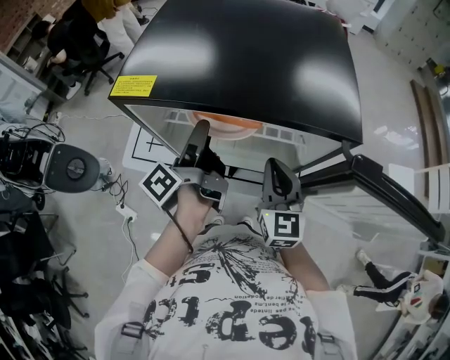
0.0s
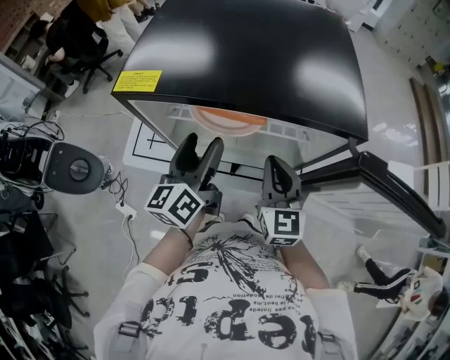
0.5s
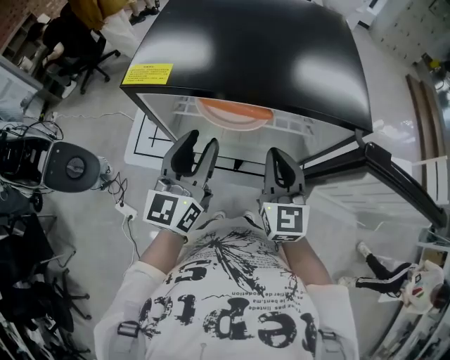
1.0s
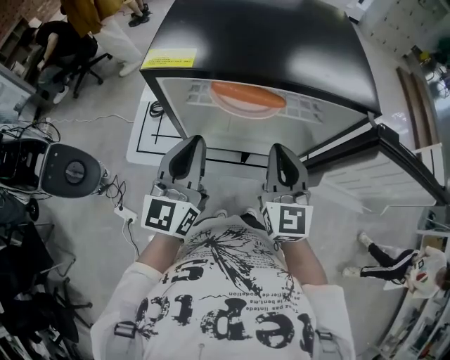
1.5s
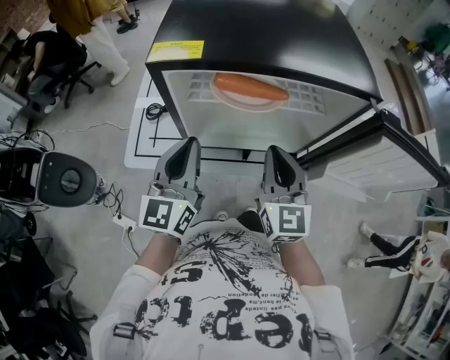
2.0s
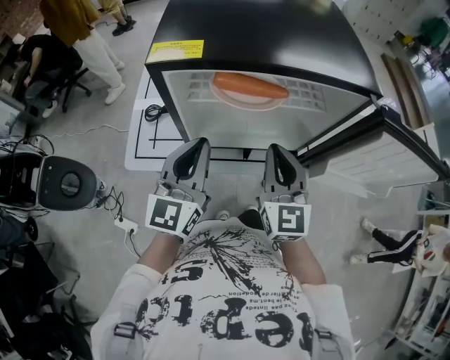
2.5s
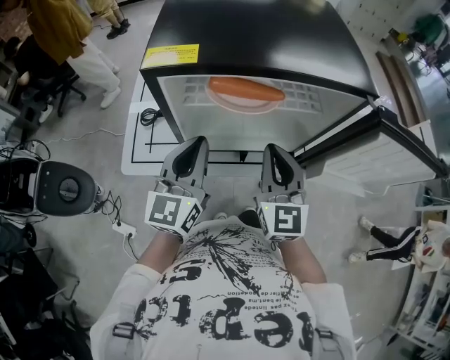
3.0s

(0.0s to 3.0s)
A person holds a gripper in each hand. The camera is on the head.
0.0s - 1.5s: The right gripper changes place by approximately 10 cm.

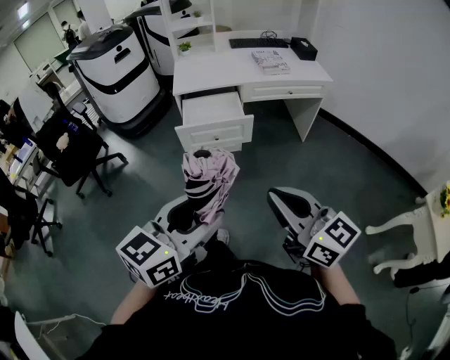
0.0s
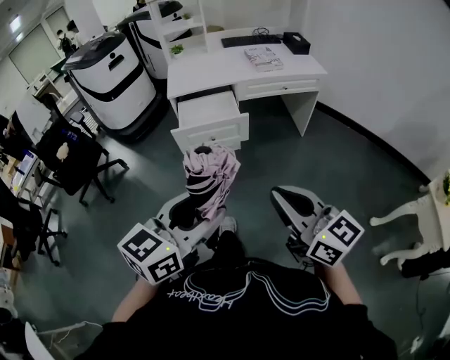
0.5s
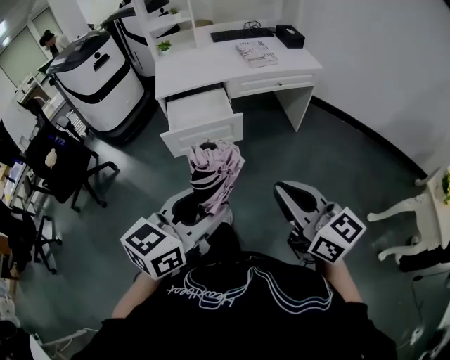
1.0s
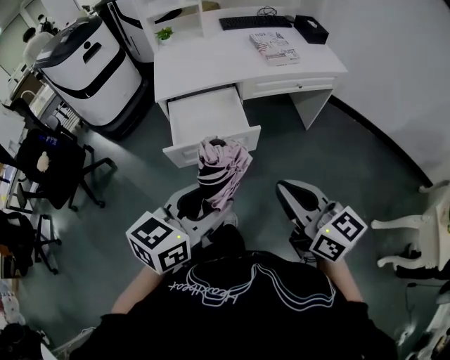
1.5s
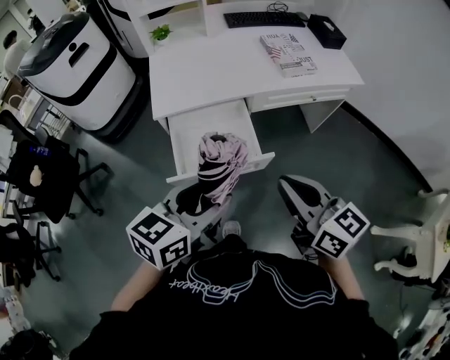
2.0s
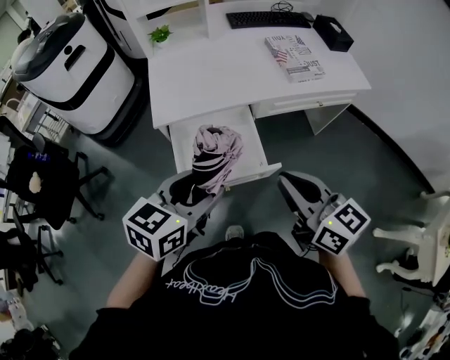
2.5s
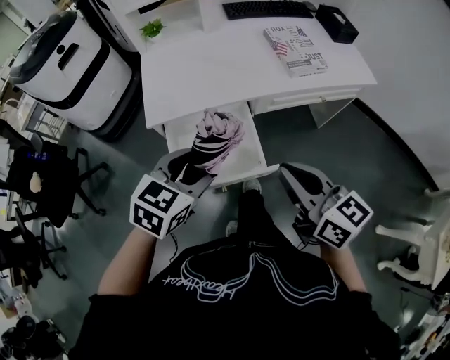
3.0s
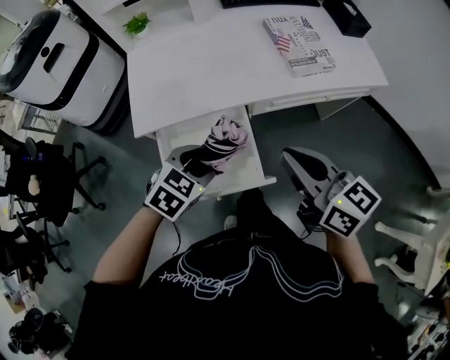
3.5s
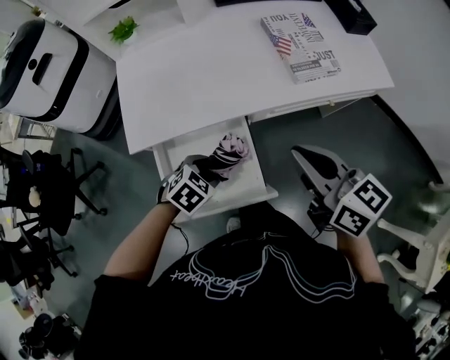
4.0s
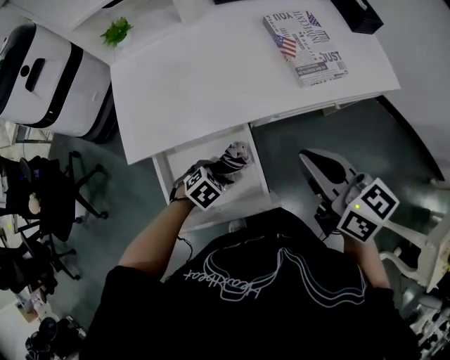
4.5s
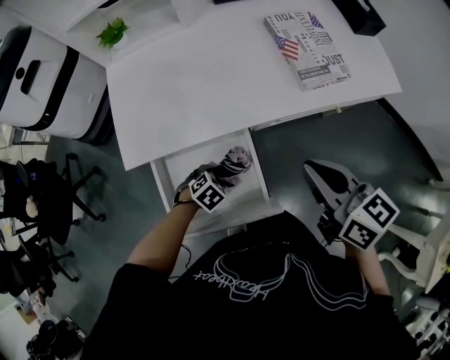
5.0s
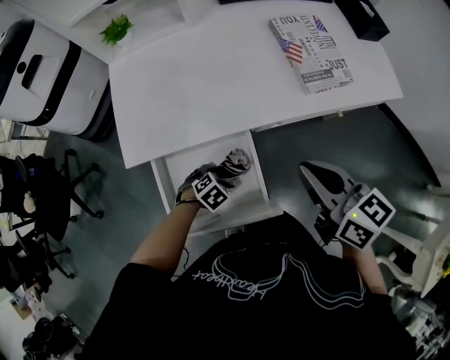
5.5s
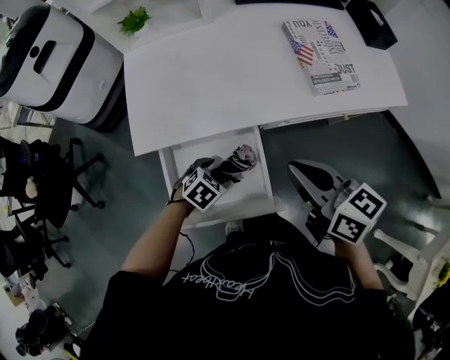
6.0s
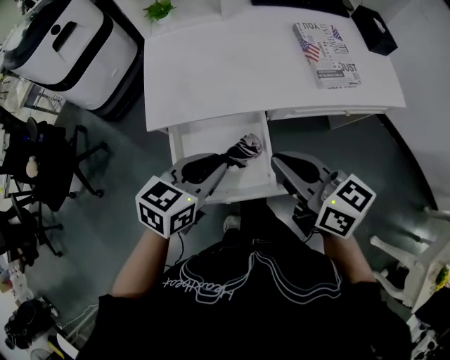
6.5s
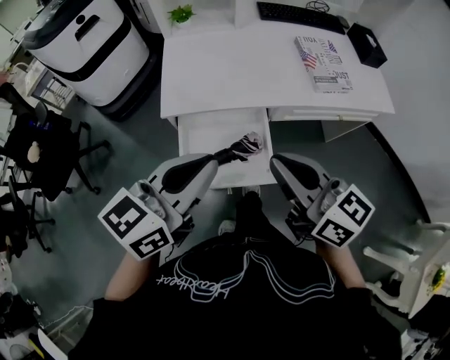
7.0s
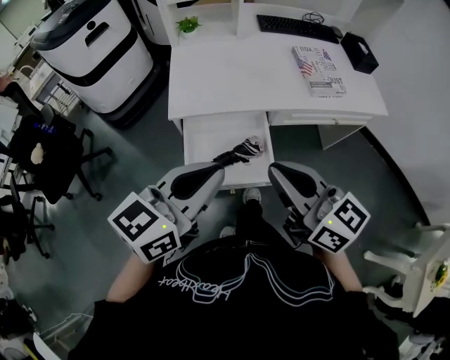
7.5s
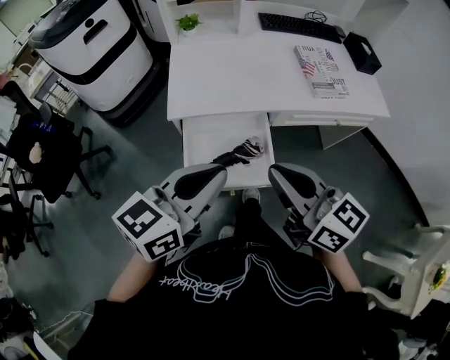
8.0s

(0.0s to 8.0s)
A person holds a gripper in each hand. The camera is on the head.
0.0s - 2.0s: The grippers both shift forward by some 40 cm.
2.0s - 4.0s: The left gripper shifts approximately 35 cm downward and forward, and tips its fingers downward by some 40 degrees, while the right gripper is displaced forward by about 25 cm.
4.0s - 6.0s: The left gripper is displaced downward by roughly 10 cm, while the right gripper ends up about 5 cm from where it was.
6.0s - 8.0s: The left gripper travels upward by about 35 cm, tilts its fingers approximately 60 degrees upward, and closes. The right gripper goes roughly 20 cm backward, upward and to the left.

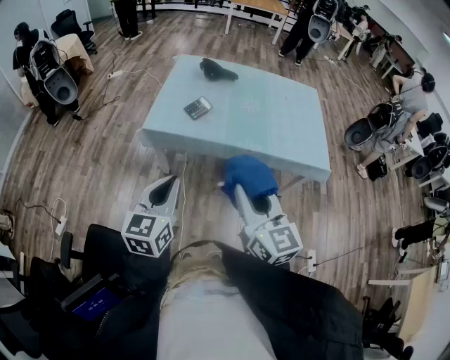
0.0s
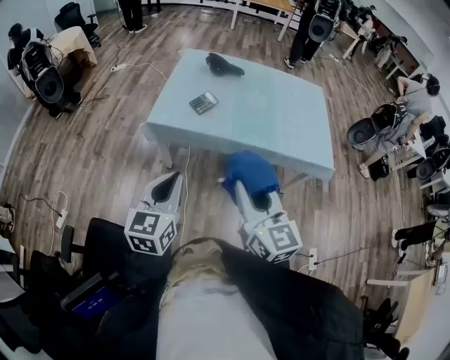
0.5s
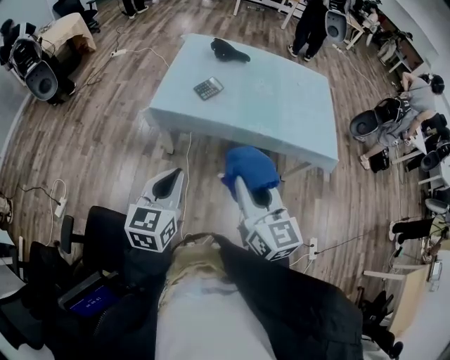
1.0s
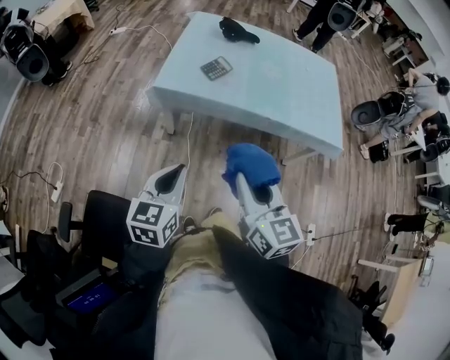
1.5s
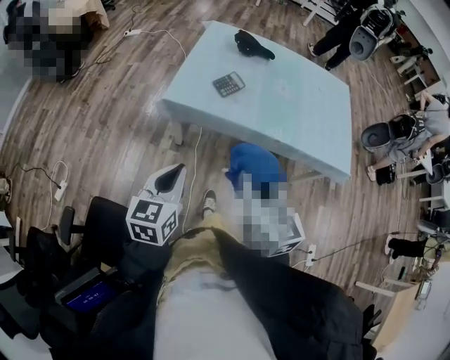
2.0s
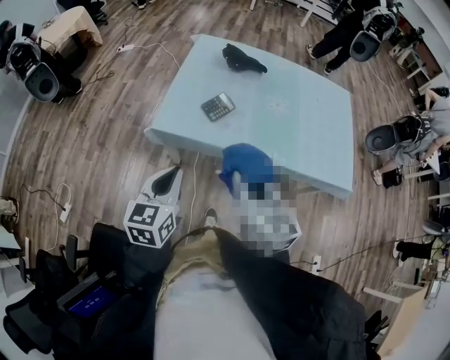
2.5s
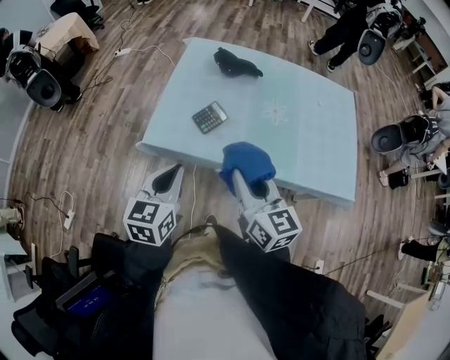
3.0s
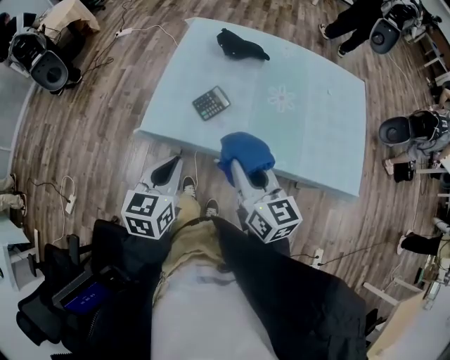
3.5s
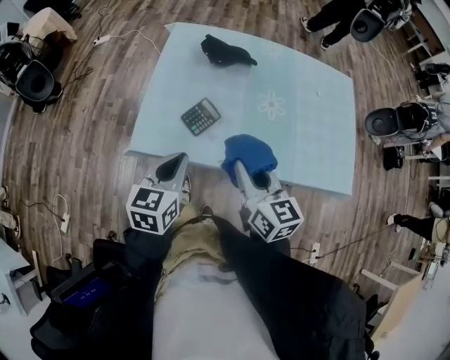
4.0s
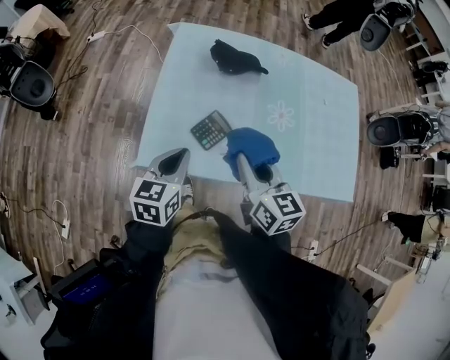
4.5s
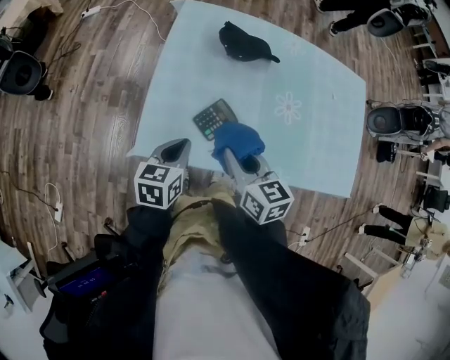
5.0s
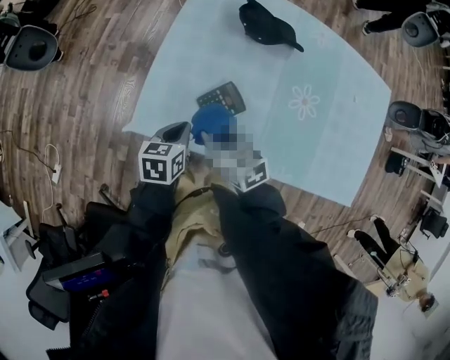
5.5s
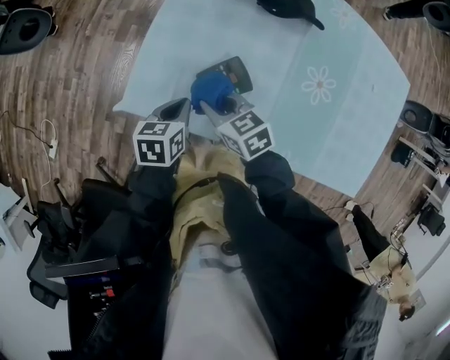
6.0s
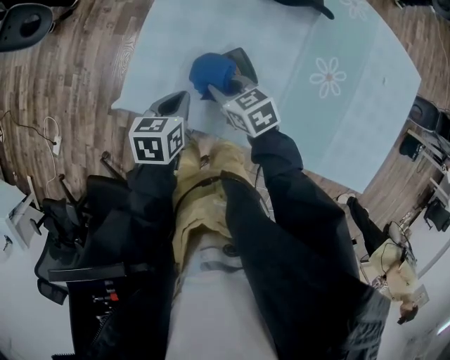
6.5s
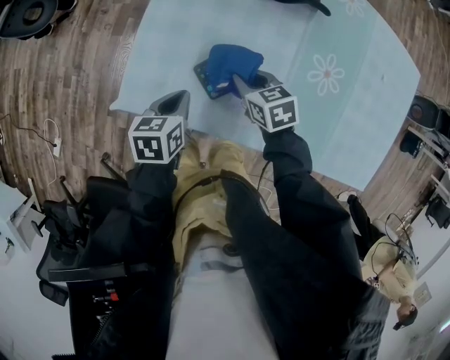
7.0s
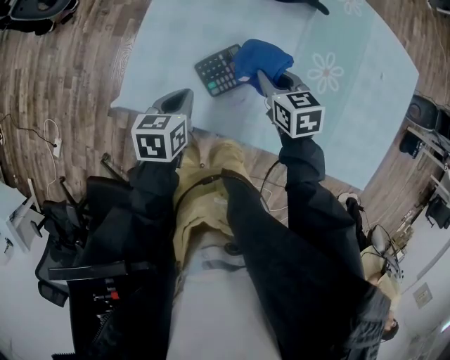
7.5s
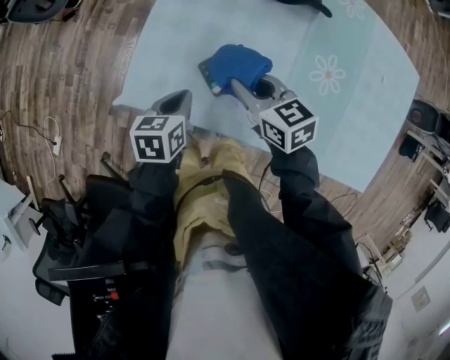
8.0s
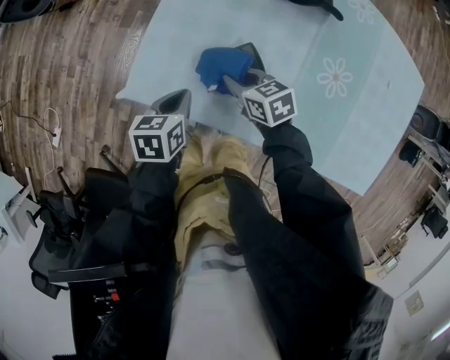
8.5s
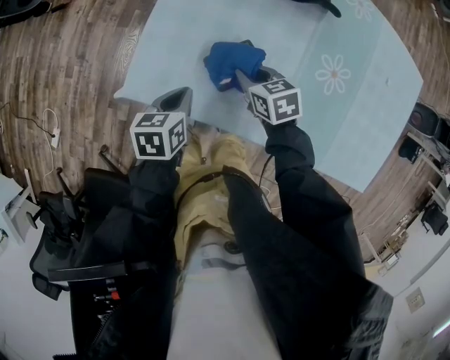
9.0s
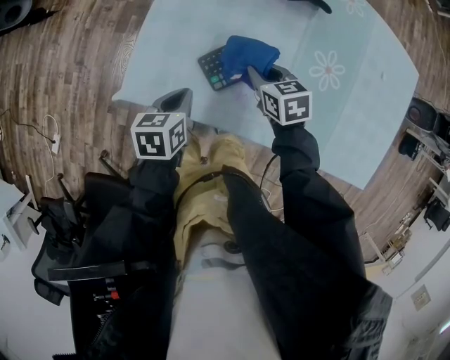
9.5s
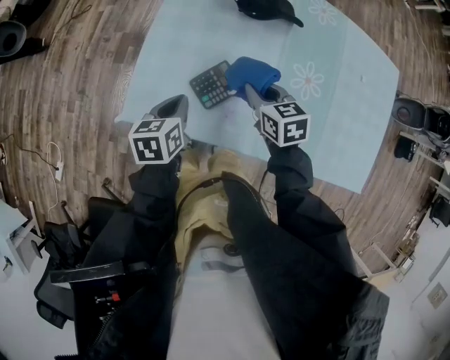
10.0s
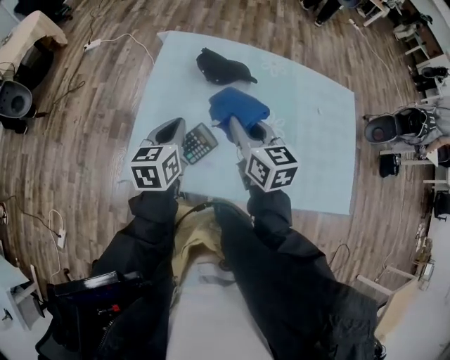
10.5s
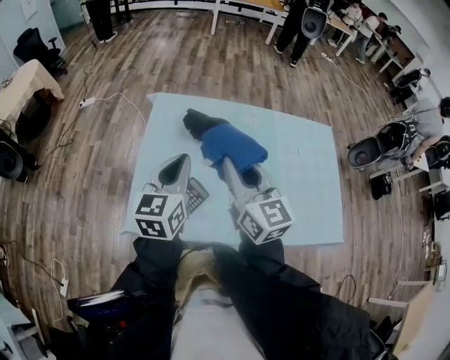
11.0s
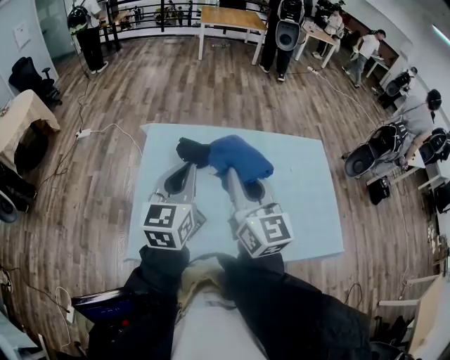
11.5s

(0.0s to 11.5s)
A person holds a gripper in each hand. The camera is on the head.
0.0s - 2.0s: The right gripper travels to the left, forward and downward by some 10 cm. The left gripper travels to the left and downward by roughly 10 cm.
2.0s - 4.0s: The grippers both shift forward by about 30 cm.
4.0s - 6.0s: The grippers both shift downward by some 20 cm. The left gripper changes its angle by approximately 30 degrees, while the right gripper turns by approximately 50 degrees.
6.0s - 7.5s: The right gripper moves to the right, about 15 cm.
7.5s - 9.5s: The right gripper reaches about 10 cm to the left, then returns.
9.5s - 11.5s: Both grippers travel together upward, approximately 40 cm. The right gripper points its fingers approximately 60 degrees further upward, while the left gripper angles its fingers upward, by about 50 degrees.

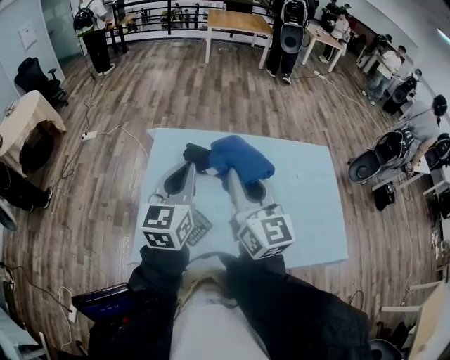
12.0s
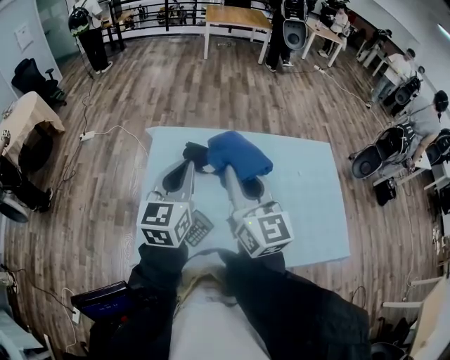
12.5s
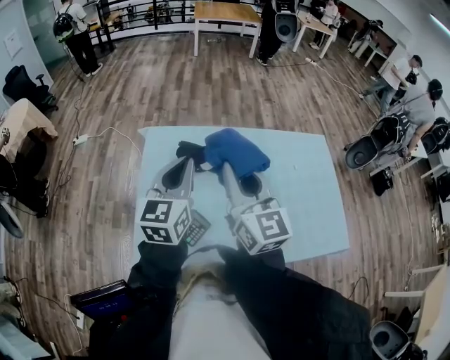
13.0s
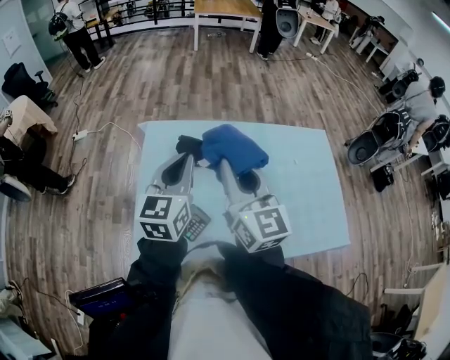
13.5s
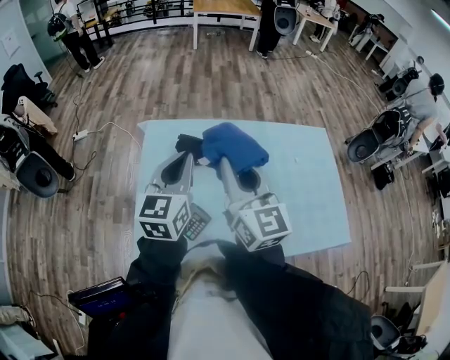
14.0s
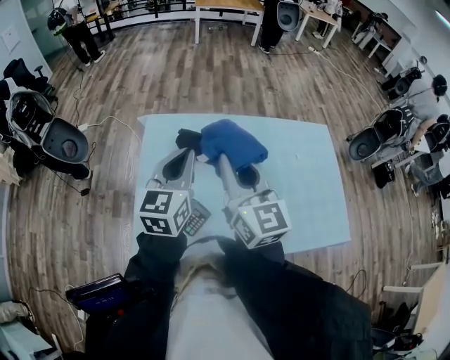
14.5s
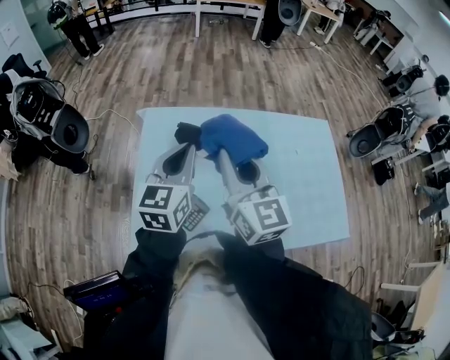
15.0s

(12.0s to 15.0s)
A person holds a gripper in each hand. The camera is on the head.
12.0s - 13.5s: The grippers make only small movements.
13.5s - 15.0s: Both grippers stay about where they are.

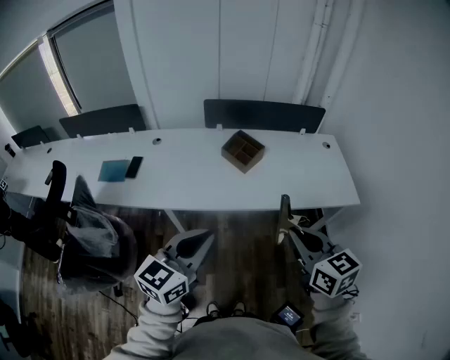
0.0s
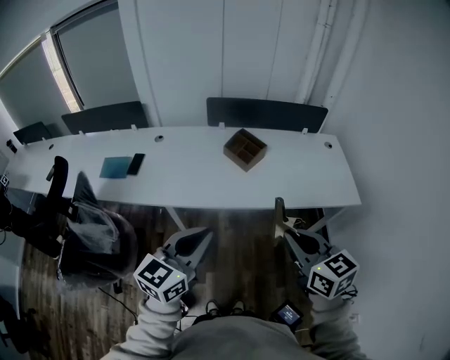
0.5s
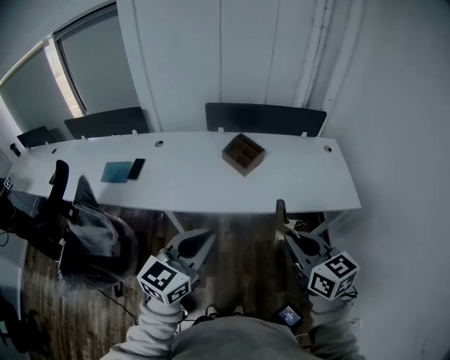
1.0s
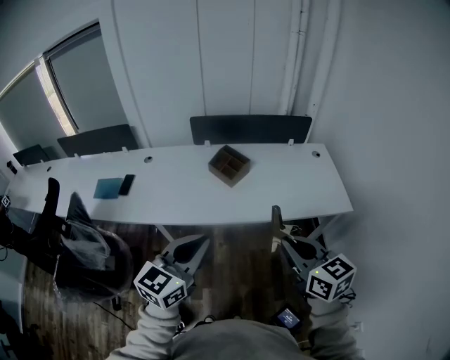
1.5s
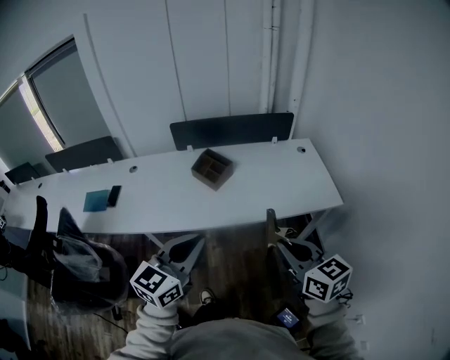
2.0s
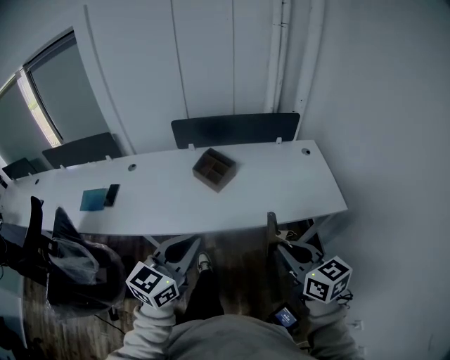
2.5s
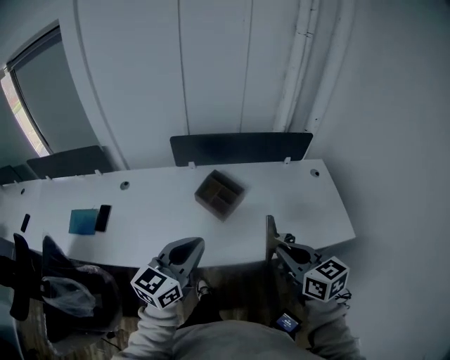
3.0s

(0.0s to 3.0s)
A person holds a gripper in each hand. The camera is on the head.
0.0s - 1.5s: Both grippers travel together to the right, roughly 5 cm.
1.5s - 3.0s: The grippers both shift forward by some 25 cm.
